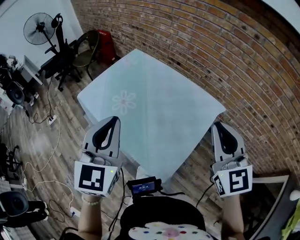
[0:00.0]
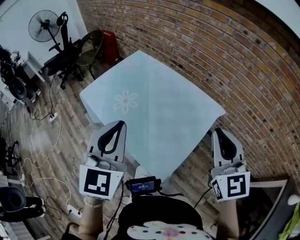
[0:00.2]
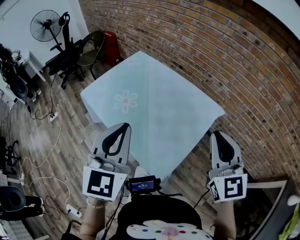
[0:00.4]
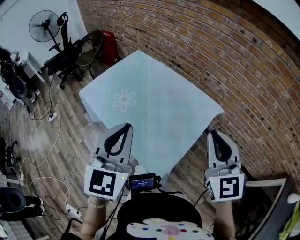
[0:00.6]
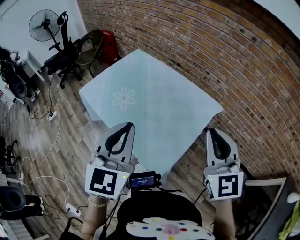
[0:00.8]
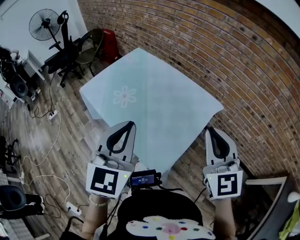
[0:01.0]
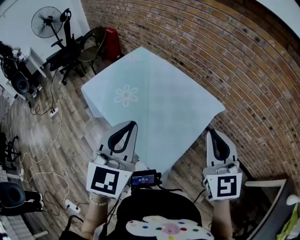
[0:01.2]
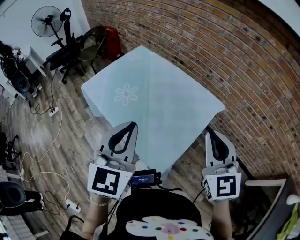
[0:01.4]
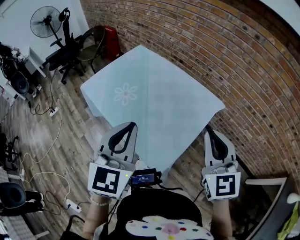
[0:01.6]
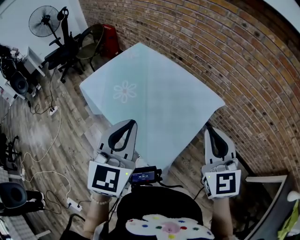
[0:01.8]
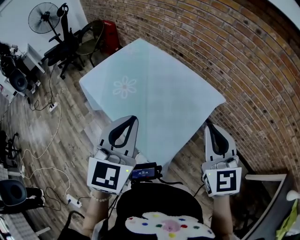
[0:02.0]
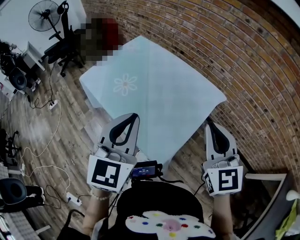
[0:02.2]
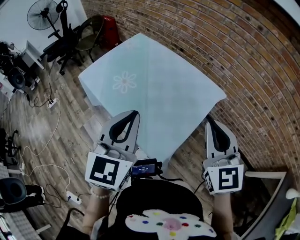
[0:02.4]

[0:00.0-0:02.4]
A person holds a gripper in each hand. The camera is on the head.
0:00.0 to 0:01.2: The left gripper travels backward by some 5 cm.
0:01.2 to 0:02.4: The grippers stay close to where they were, moving slightly.

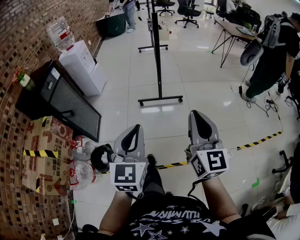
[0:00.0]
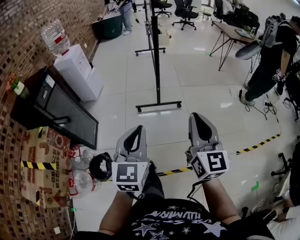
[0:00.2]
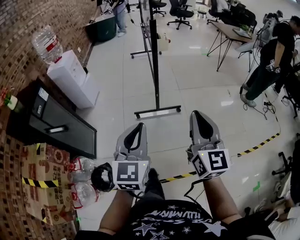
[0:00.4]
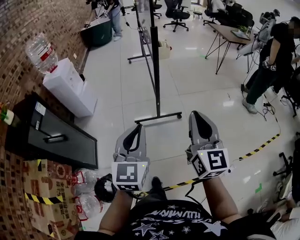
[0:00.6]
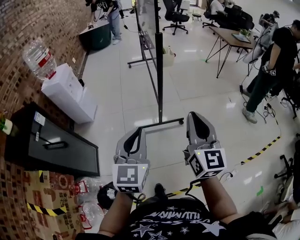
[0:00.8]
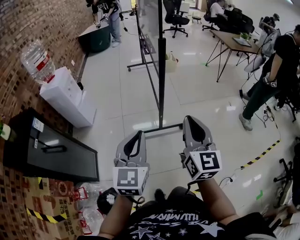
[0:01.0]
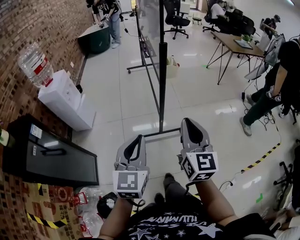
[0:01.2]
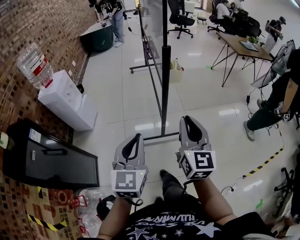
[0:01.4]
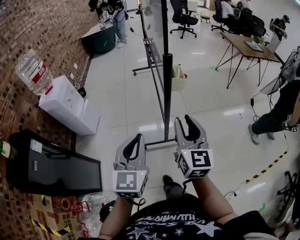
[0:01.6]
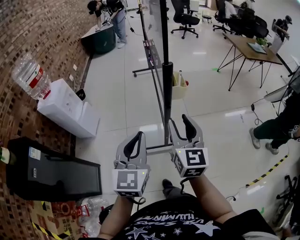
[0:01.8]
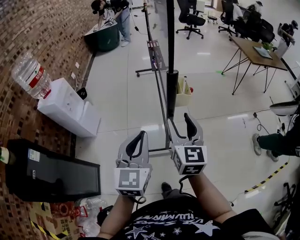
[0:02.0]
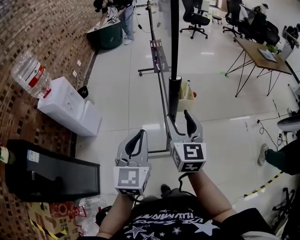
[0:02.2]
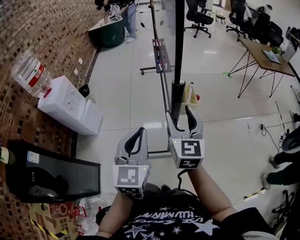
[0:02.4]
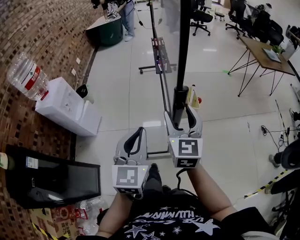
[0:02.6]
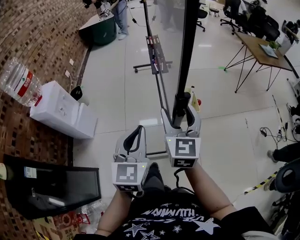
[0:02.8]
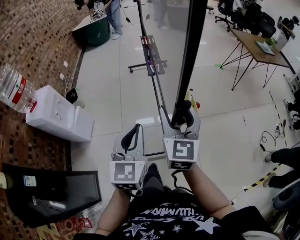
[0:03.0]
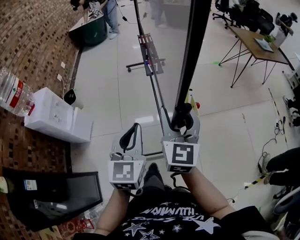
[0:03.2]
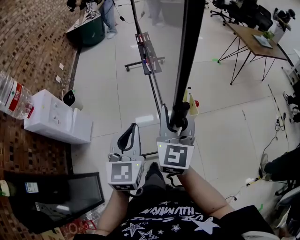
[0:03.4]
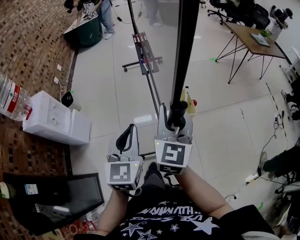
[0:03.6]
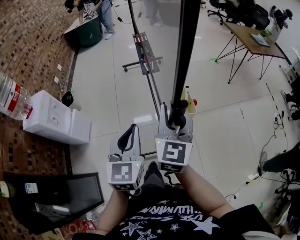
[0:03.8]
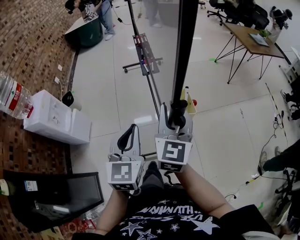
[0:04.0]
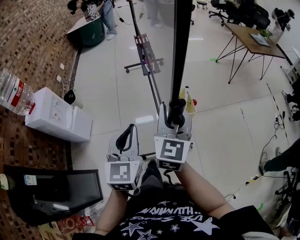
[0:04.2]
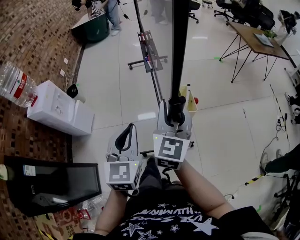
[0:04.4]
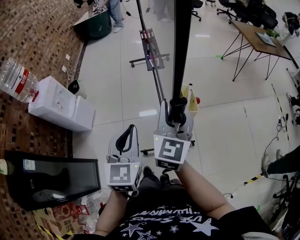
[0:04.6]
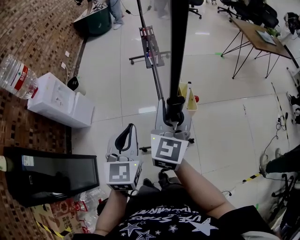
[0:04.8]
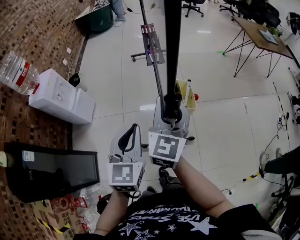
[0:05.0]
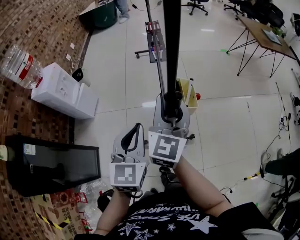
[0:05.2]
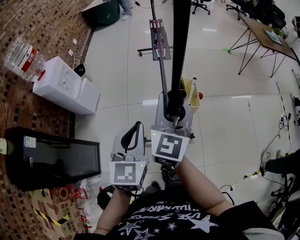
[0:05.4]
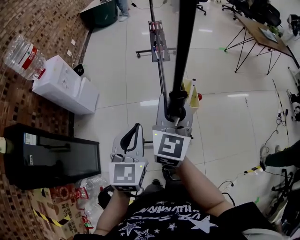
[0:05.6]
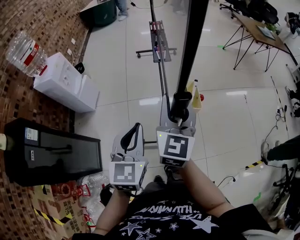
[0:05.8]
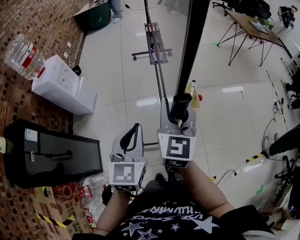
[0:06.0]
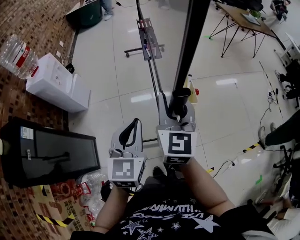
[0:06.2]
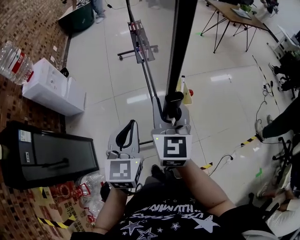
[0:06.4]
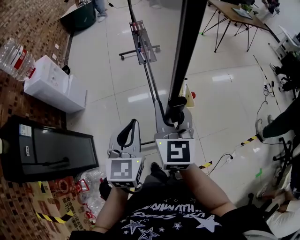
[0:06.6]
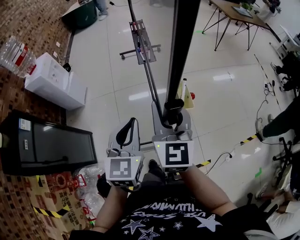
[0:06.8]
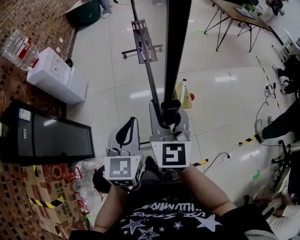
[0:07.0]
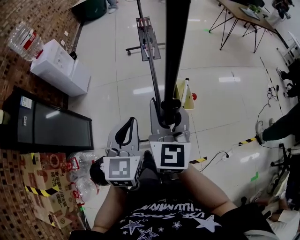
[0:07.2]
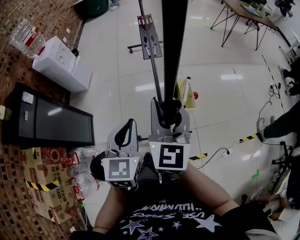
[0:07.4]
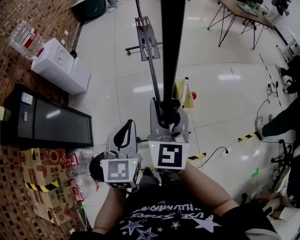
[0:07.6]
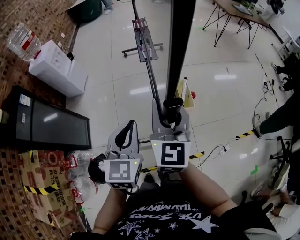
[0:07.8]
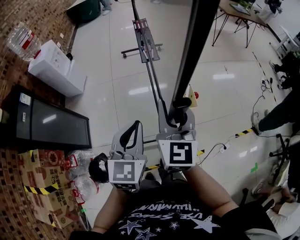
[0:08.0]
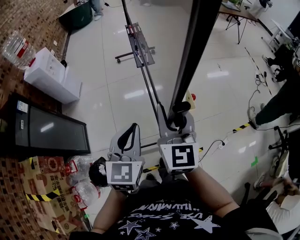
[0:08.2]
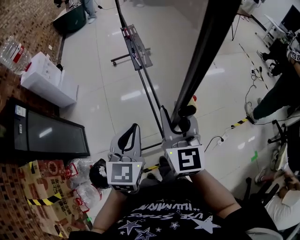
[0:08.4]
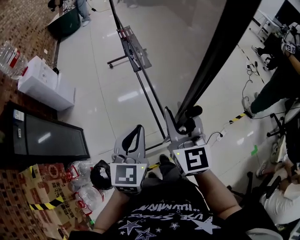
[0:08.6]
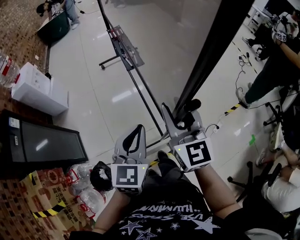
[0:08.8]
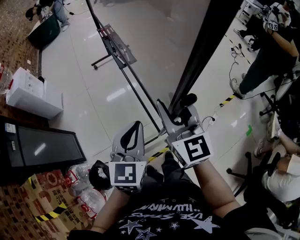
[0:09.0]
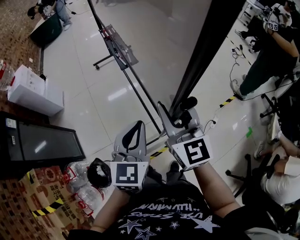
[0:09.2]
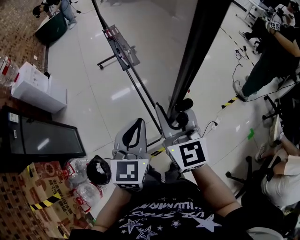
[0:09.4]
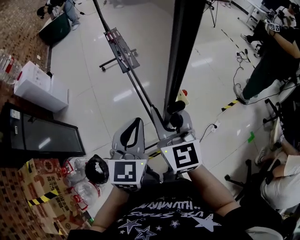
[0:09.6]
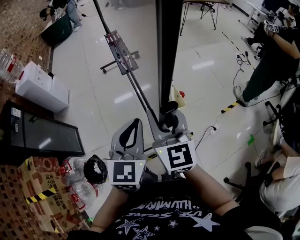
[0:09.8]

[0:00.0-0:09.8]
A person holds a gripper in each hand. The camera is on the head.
0:00.0 to 0:01.4: The two grippers go some 35 cm forward.
0:01.4 to 0:02.8: Both grippers move forward, about 25 cm. The right gripper opens.
0:02.8 to 0:04.2: The right gripper closes its fingers.
0:04.2 to 0:05.6: Both grippers travel together backward, about 15 cm.
0:05.6 to 0:07.0: The left gripper travels backward and to the right by some 20 cm; the right gripper goes approximately 20 cm backward.
0:07.0 to 0:08.4: The right gripper moves backward and to the right, roughly 15 cm; the left gripper travels backward by some 10 cm.
0:08.4 to 0:09.8: The right gripper goes approximately 10 cm backward and to the right, while the left gripper travels to the right and backward by approximately 15 cm.

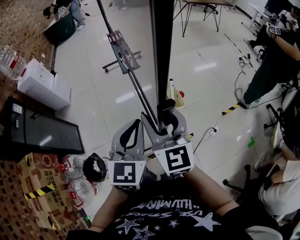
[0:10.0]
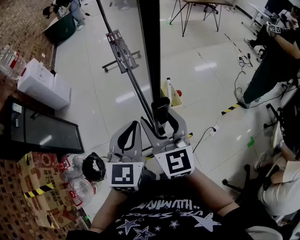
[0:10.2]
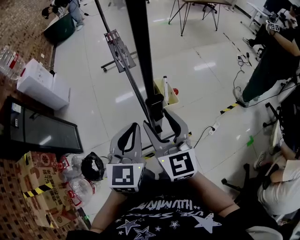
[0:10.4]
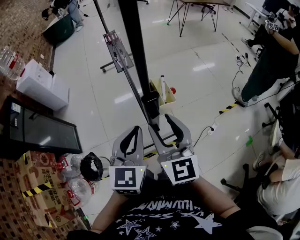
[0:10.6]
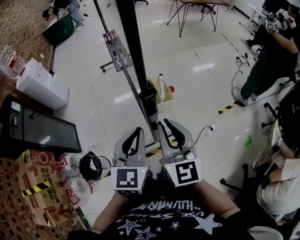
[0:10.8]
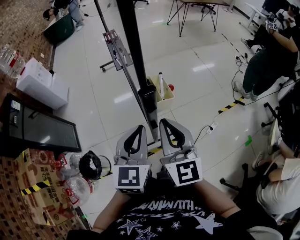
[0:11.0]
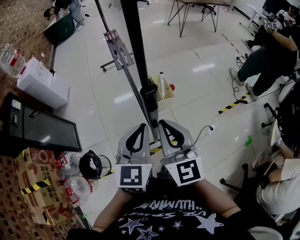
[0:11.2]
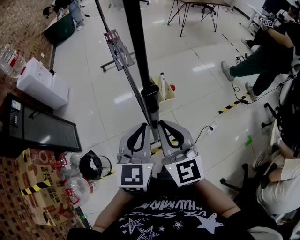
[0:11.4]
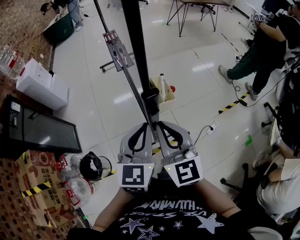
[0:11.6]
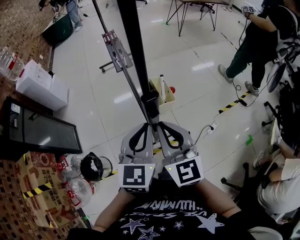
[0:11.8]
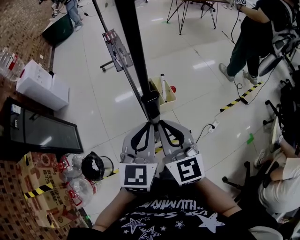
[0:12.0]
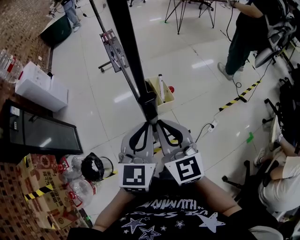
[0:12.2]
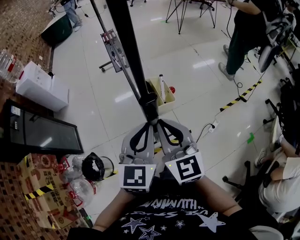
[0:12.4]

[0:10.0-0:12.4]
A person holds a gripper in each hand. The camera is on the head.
0:10.0 to 0:11.2: The right gripper travels backward and to the right by some 10 cm, and closes. The left gripper shifts by roughly 5 cm.
0:11.2 to 0:12.4: The grippers make only small movements.

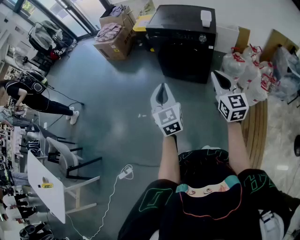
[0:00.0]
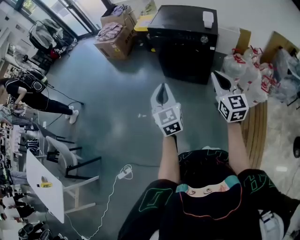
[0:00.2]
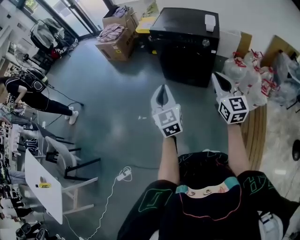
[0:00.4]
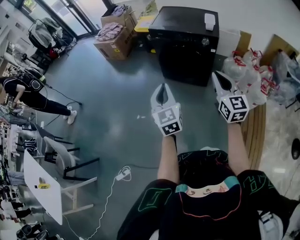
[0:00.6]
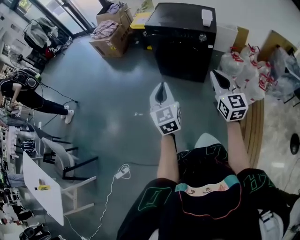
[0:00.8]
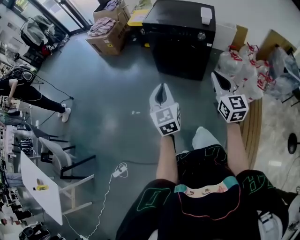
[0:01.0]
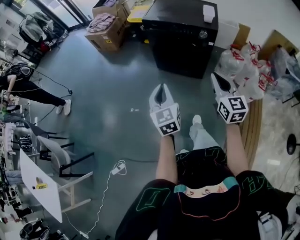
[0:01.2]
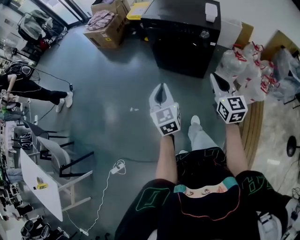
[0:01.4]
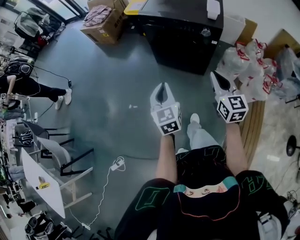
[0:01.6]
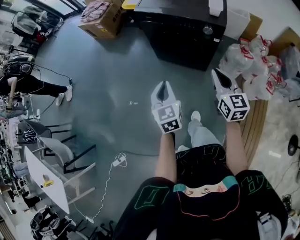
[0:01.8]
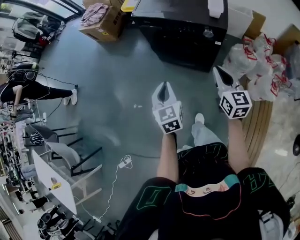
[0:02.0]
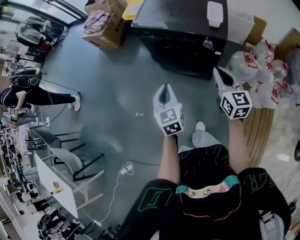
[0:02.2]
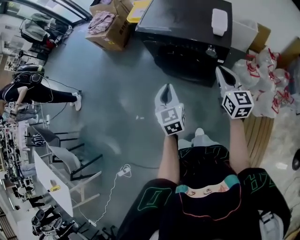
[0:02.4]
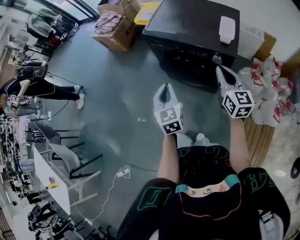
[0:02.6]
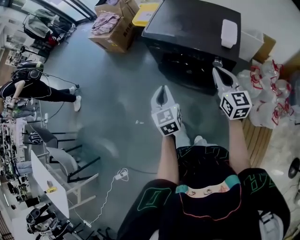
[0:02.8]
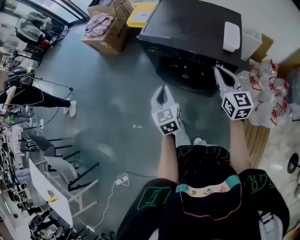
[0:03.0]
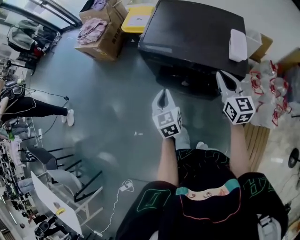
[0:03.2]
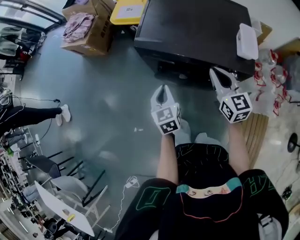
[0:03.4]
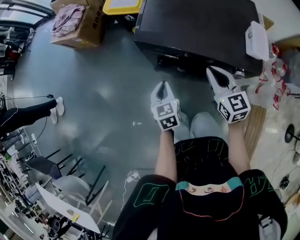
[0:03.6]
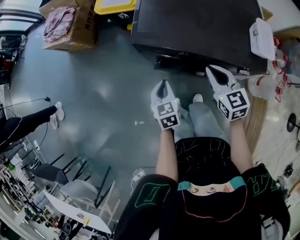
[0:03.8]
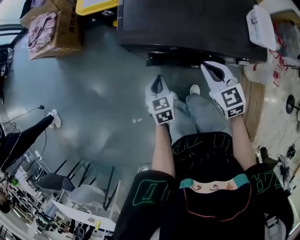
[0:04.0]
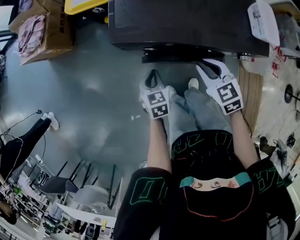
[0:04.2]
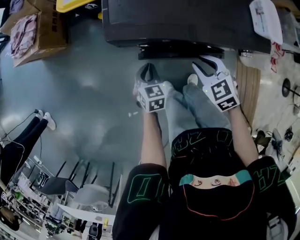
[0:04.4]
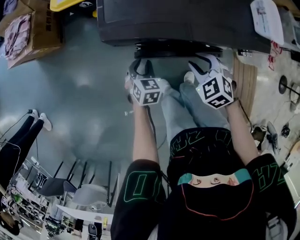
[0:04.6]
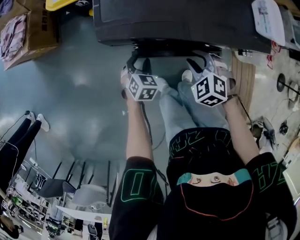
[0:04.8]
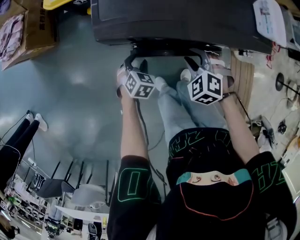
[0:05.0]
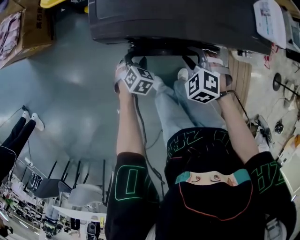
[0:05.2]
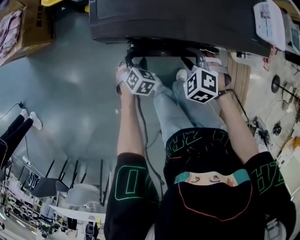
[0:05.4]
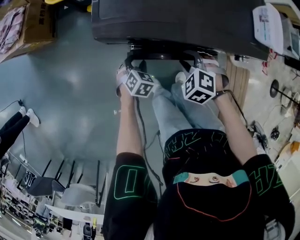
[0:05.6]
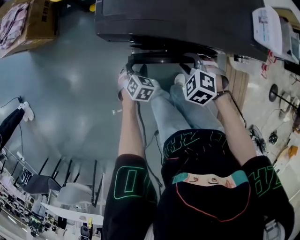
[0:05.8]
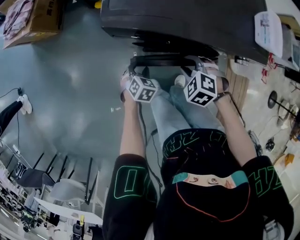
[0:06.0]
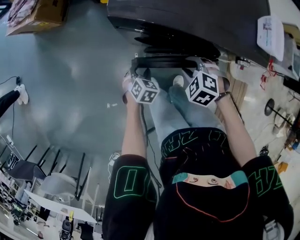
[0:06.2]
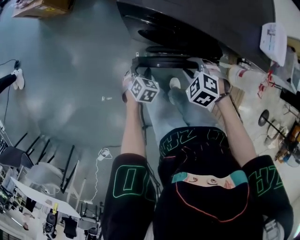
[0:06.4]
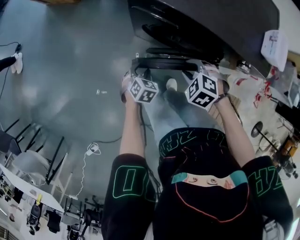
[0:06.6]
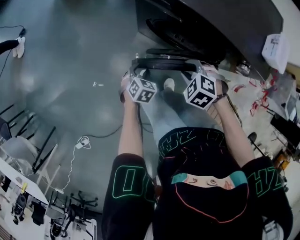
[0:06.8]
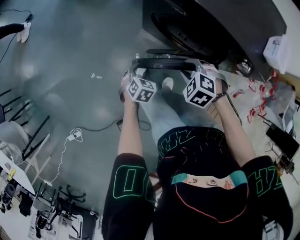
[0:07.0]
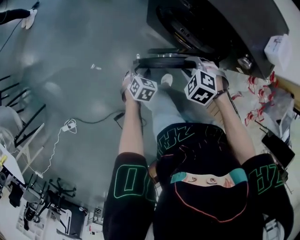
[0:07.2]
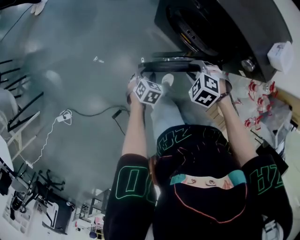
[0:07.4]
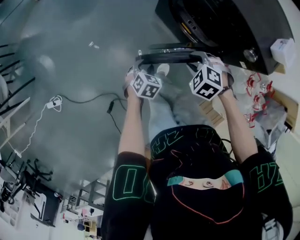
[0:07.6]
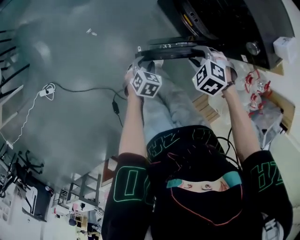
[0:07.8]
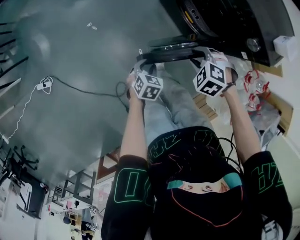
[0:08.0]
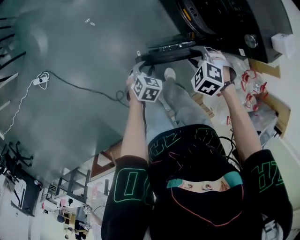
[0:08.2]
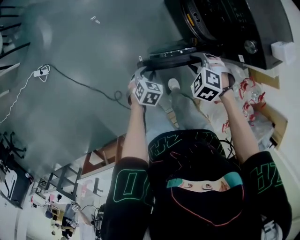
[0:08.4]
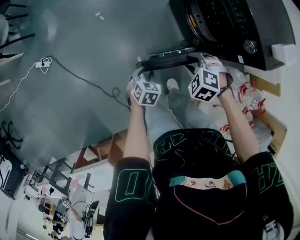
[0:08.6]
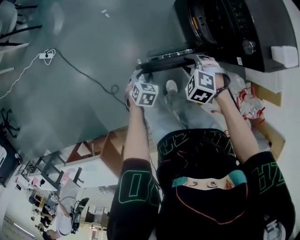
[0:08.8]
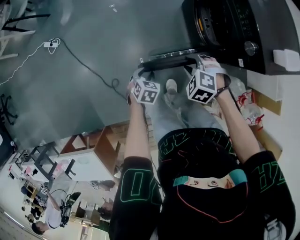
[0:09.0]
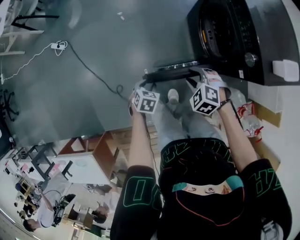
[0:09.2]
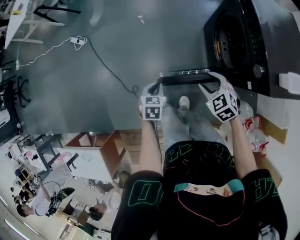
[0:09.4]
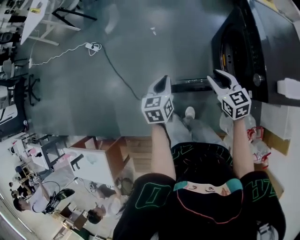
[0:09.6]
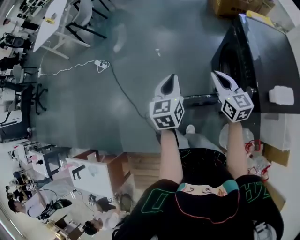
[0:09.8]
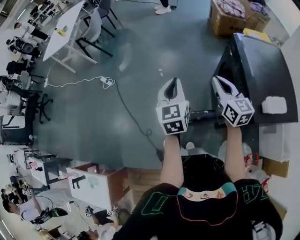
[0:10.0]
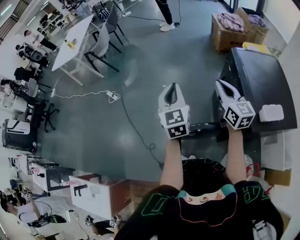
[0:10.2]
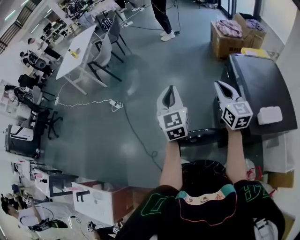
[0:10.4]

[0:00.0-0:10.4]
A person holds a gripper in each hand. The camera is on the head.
0:00.0 to 0:01.4: The two grippers go approximately 10 cm forward and downward.
0:01.4 to 0:03.0: Both grippers travel together forward, roughly 30 cm.
0:03.0 to 0:04.4: The left gripper shifts some 35 cm downward and forward, and swivels approximately 40 degrees. Meanwhile the right gripper is displaced downward, to the left and forward by some 30 cm, angles its fingers downward, by about 40 degrees, and opens.
0:04.4 to 0:06.0: Both grippers travel together downward, roughly 10 cm. The left gripper turns by roughly 20 degrees, and opens its fingers. The right gripper turns by roughly 40 degrees.
0:06.0 to 0:07.4: The right gripper changes place by about 20 cm, and turns by about 40 degrees. The left gripper shifts by some 30 cm, and changes its angle by about 40 degrees.
0:07.4 to 0:09.0: The right gripper changes place by about 20 cm, and turns by about 40 degrees. Meanwhile the left gripper shifts by roughly 30 cm, and rotates some 40 degrees.
0:09.0 to 0:10.4: The grippers both shift upward by roughly 40 cm. The left gripper tips its fingers upward by roughly 60 degrees, and closes up. The right gripper tips its fingers upward by approximately 70 degrees, and closes up.
